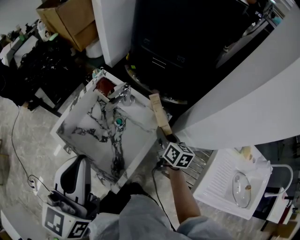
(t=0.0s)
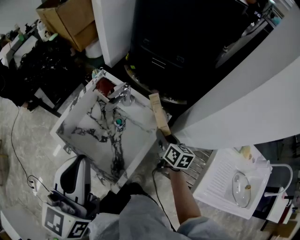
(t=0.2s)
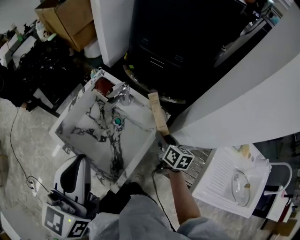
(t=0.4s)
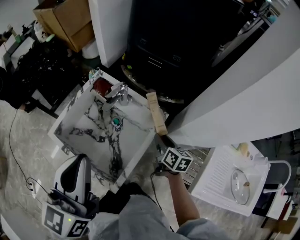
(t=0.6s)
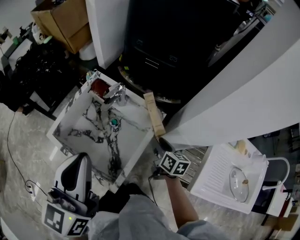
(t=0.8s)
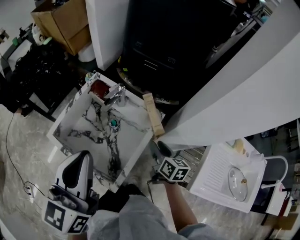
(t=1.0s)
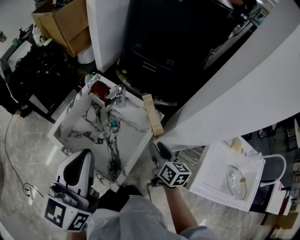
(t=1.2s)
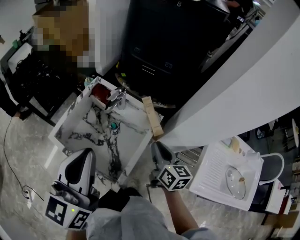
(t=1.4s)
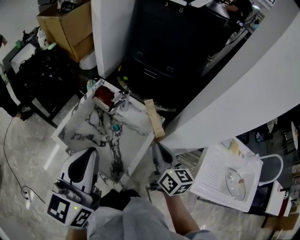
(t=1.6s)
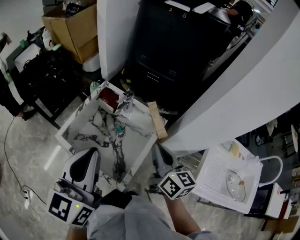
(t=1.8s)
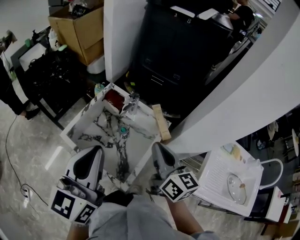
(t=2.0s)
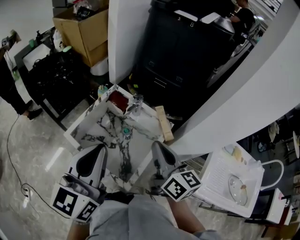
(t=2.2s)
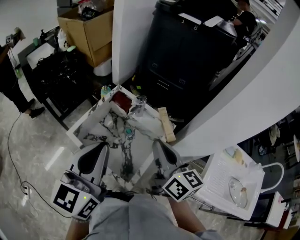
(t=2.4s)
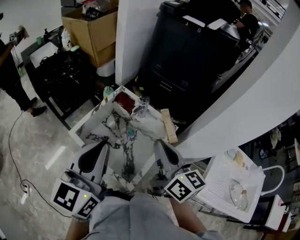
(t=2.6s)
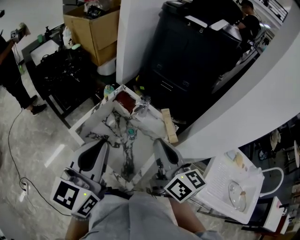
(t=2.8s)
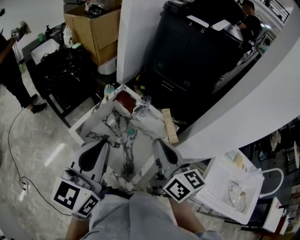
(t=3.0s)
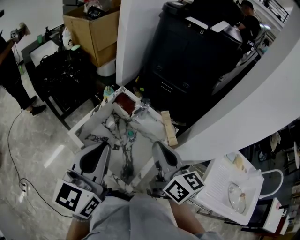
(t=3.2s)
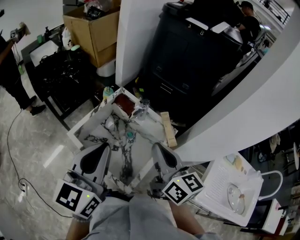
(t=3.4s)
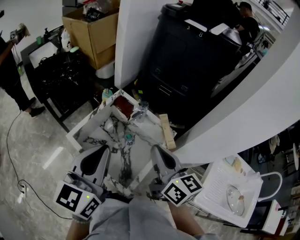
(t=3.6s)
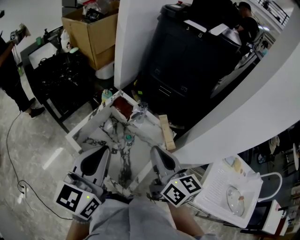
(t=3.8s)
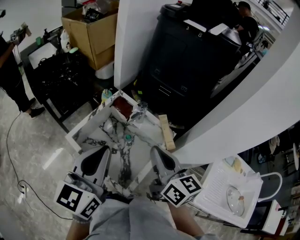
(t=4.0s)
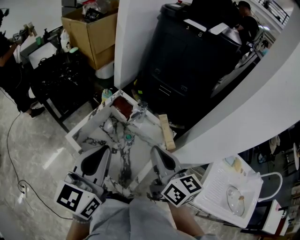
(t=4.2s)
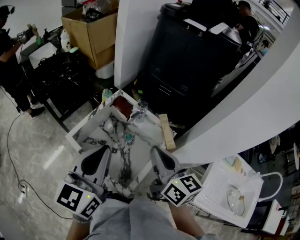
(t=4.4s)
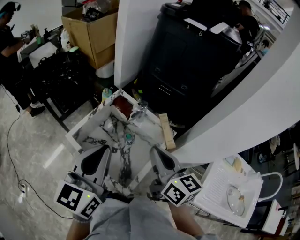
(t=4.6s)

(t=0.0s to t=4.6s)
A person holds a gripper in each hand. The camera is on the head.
t=0.0s - t=1.6s: The right gripper travels upward and backward by approximately 20 cm, and closes.
t=1.6s - t=3.0s: The right gripper travels upward and to the left by some 15 cm; the left gripper heads to the left, covering approximately 5 cm.
t=3.0s - t=4.6s: The grippers move only a little.

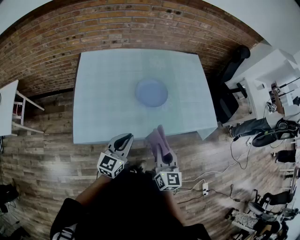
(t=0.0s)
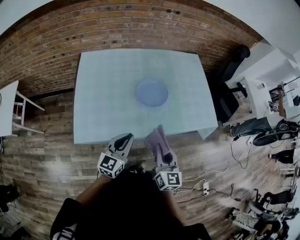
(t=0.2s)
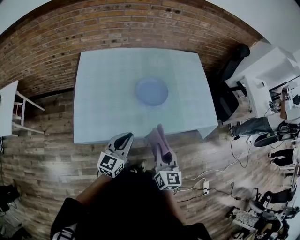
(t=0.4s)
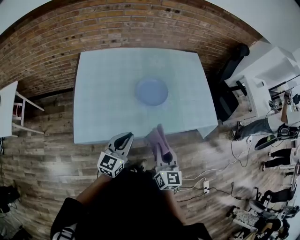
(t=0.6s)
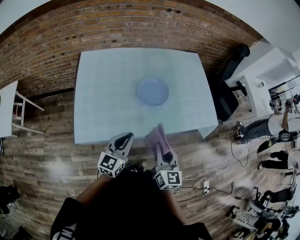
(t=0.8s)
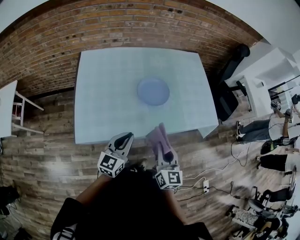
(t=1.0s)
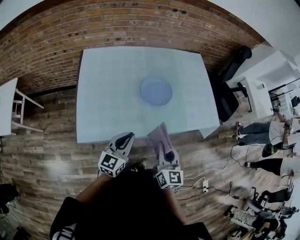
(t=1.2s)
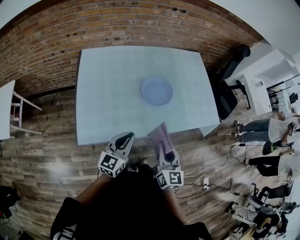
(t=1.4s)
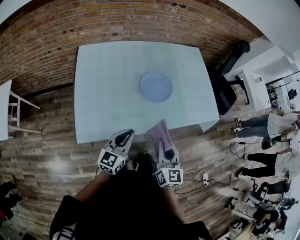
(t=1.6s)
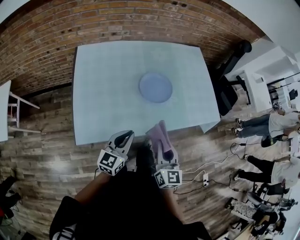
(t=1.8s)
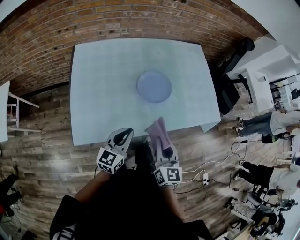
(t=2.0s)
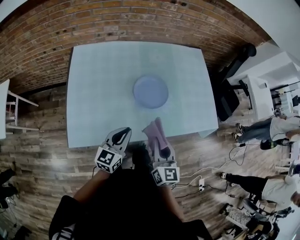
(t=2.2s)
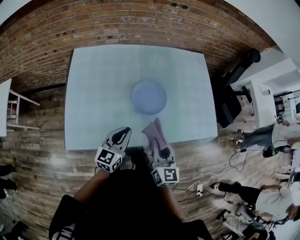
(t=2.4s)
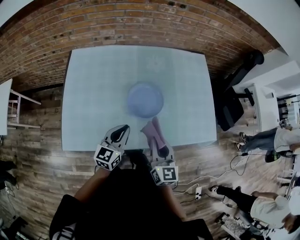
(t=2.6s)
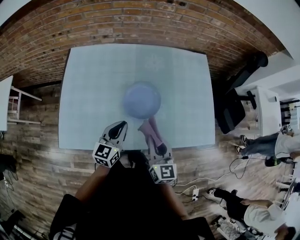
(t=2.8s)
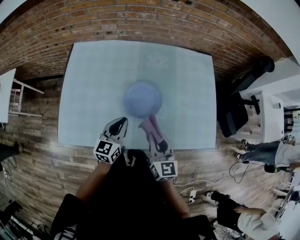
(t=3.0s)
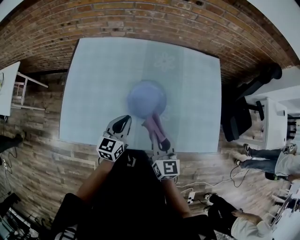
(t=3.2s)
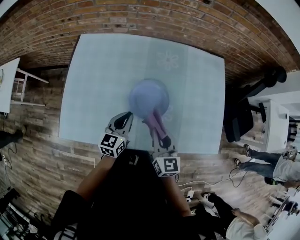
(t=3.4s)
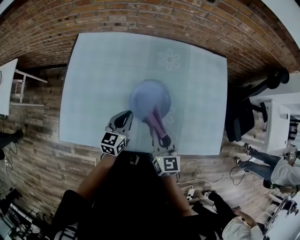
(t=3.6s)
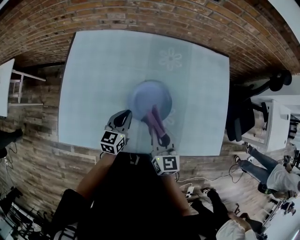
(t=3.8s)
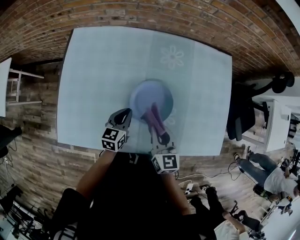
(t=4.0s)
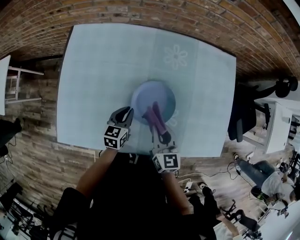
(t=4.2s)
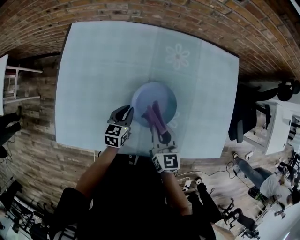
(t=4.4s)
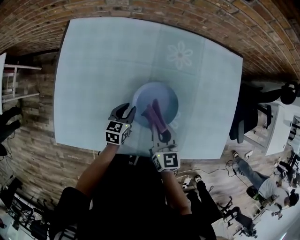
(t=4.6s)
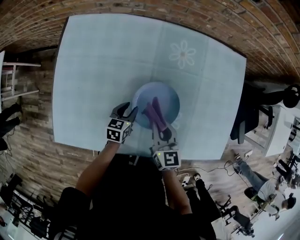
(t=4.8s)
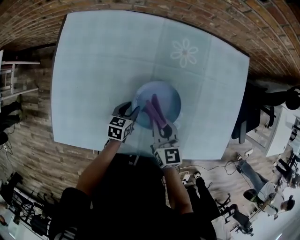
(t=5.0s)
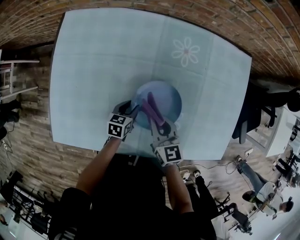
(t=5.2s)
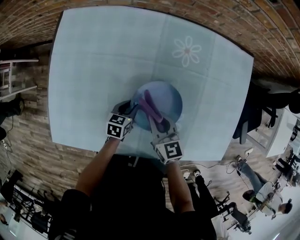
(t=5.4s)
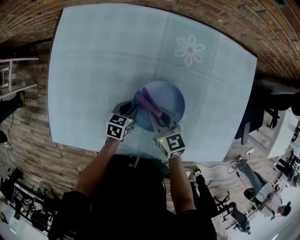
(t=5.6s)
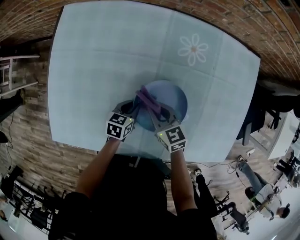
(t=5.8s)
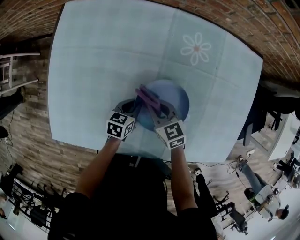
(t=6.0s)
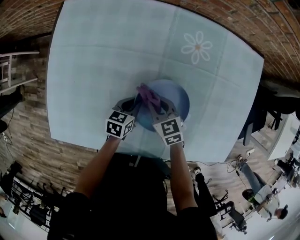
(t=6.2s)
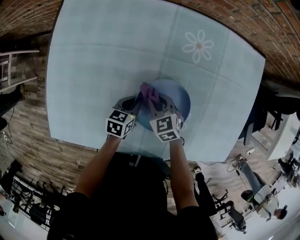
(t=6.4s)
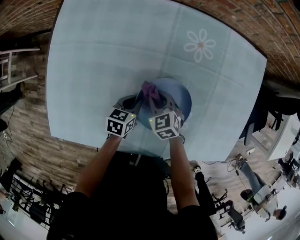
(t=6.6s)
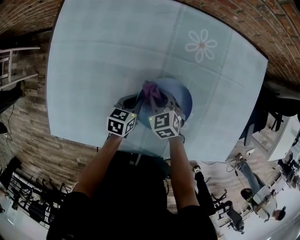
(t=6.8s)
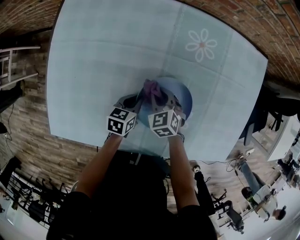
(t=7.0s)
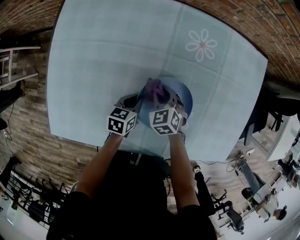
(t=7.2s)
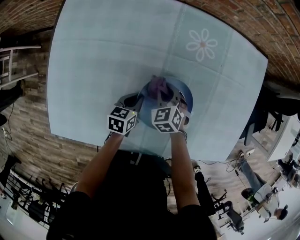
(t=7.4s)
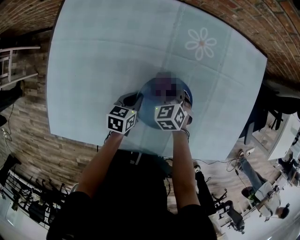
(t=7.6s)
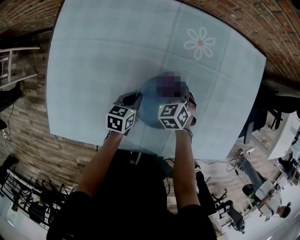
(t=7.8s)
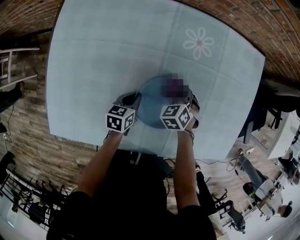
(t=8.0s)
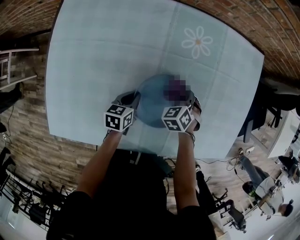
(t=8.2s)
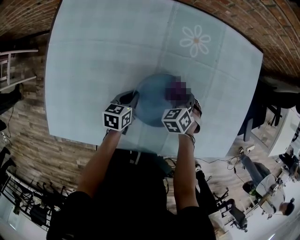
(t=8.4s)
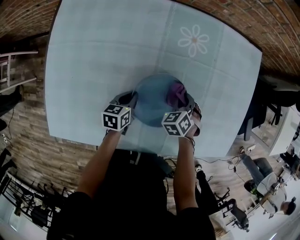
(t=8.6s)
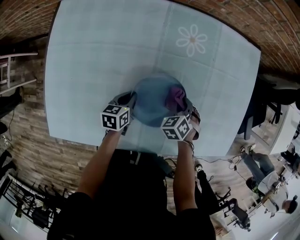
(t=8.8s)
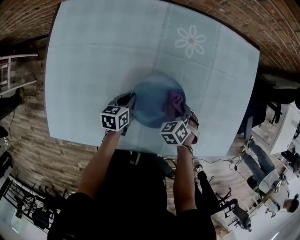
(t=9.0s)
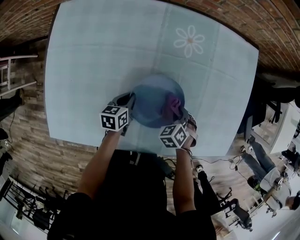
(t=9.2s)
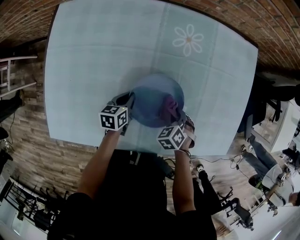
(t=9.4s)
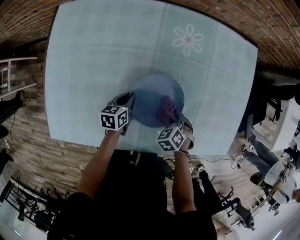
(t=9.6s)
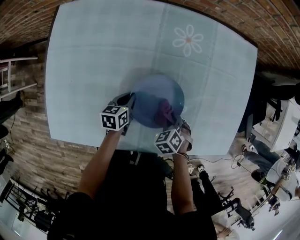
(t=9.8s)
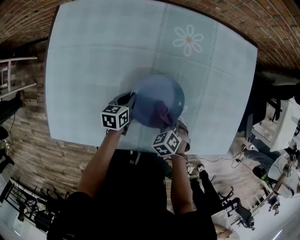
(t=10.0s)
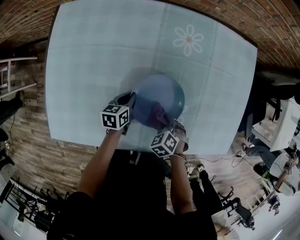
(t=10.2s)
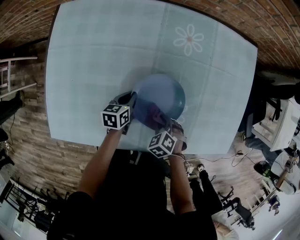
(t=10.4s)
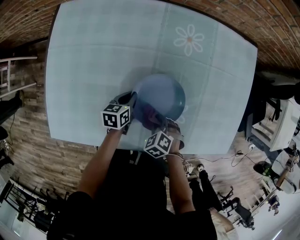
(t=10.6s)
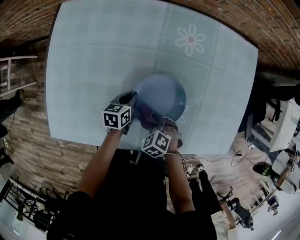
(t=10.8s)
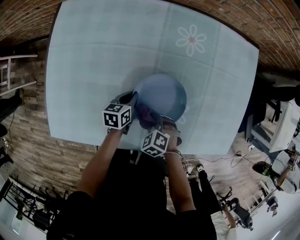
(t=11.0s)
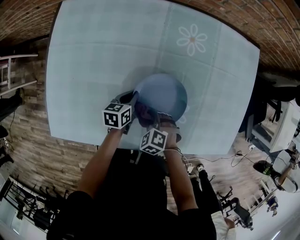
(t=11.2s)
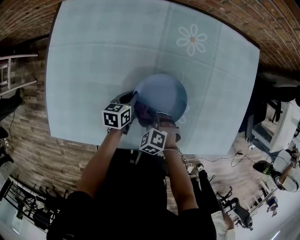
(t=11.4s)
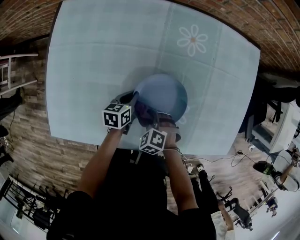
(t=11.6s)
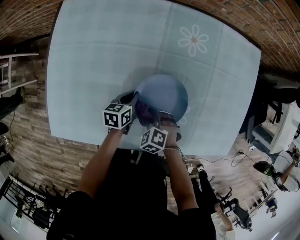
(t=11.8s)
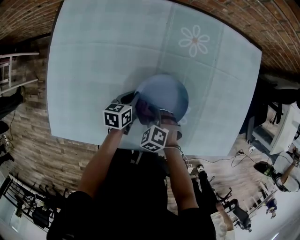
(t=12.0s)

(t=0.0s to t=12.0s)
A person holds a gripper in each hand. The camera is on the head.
t=0.0s - t=1.6s: Both grippers travel together to the left, about 5 cm.
t=1.6s - t=3.0s: The grippers both shift forward and to the right by some 25 cm. The right gripper turns by some 20 degrees; the left gripper changes its angle by about 20 degrees.
t=3.0s - t=4.4s: The left gripper goes approximately 20 cm downward and forward, and turns by about 20 degrees; the right gripper shifts about 20 cm forward and downward.
t=4.4s - t=6.0s: The left gripper heads downward, covering some 10 cm, while the right gripper goes about 15 cm downward, forward and to the left, and rotates approximately 30 degrees.
t=6.0s - t=7.6s: The right gripper heads forward, covering approximately 5 cm, and rotates roughly 40 degrees.
t=7.6s - t=9.0s: The right gripper goes roughly 15 cm to the right.
t=9.0s - t=10.4s: The right gripper travels backward by approximately 10 cm.
t=10.4s - t=12.0s: The right gripper goes some 5 cm to the left.

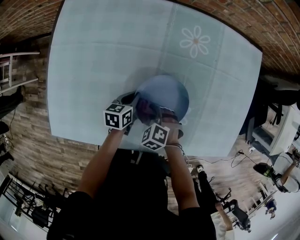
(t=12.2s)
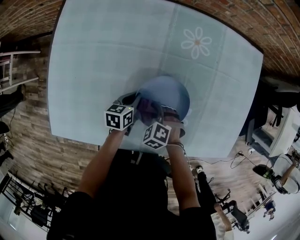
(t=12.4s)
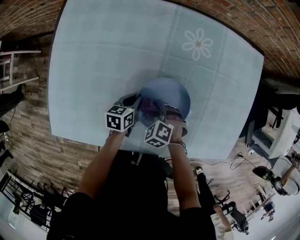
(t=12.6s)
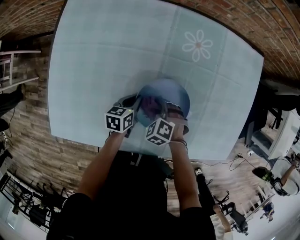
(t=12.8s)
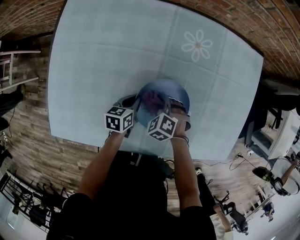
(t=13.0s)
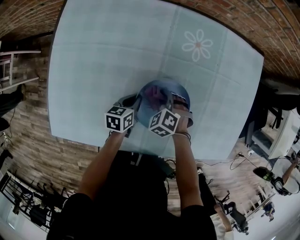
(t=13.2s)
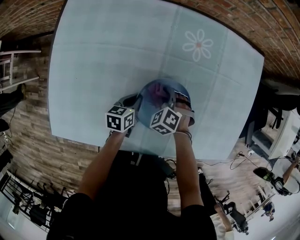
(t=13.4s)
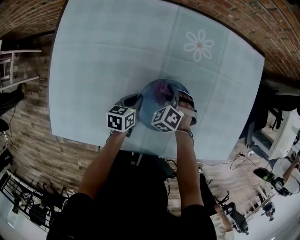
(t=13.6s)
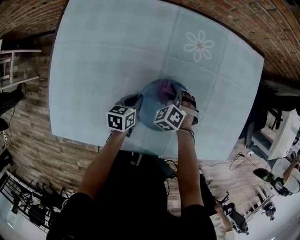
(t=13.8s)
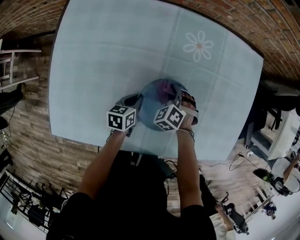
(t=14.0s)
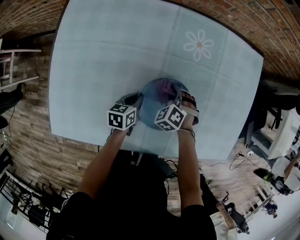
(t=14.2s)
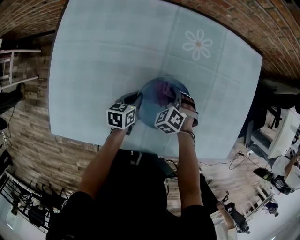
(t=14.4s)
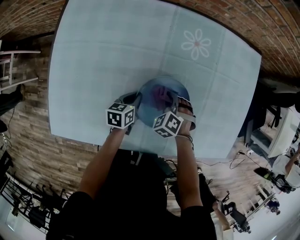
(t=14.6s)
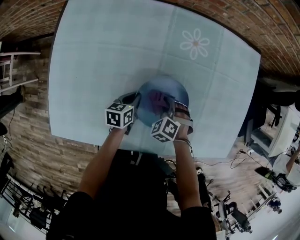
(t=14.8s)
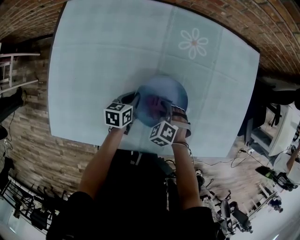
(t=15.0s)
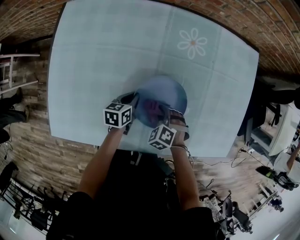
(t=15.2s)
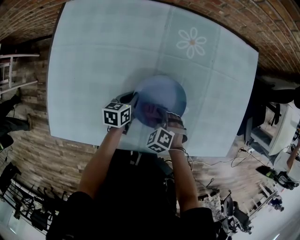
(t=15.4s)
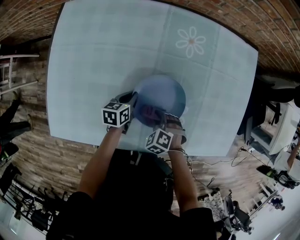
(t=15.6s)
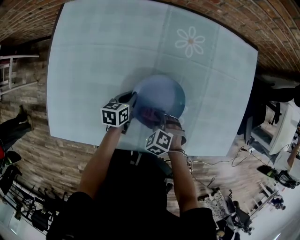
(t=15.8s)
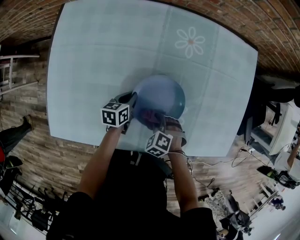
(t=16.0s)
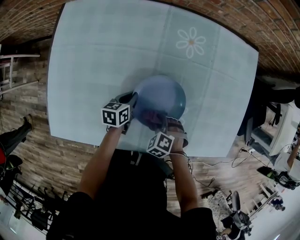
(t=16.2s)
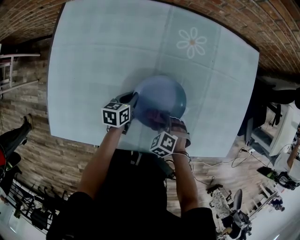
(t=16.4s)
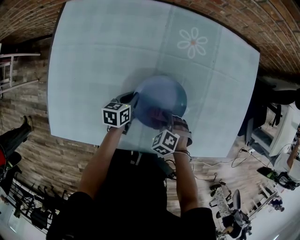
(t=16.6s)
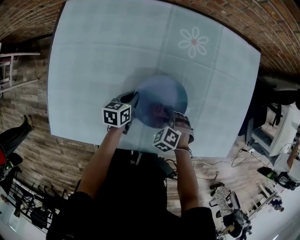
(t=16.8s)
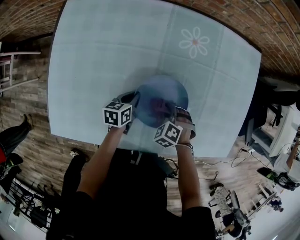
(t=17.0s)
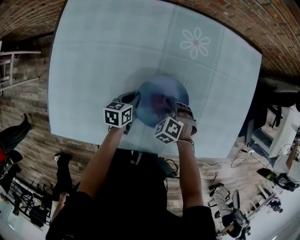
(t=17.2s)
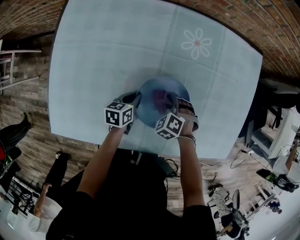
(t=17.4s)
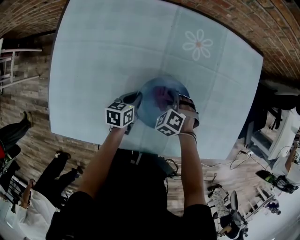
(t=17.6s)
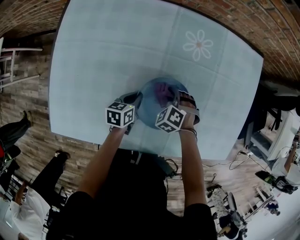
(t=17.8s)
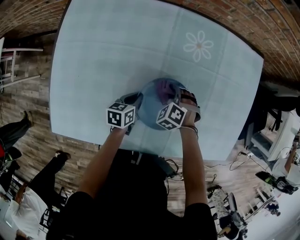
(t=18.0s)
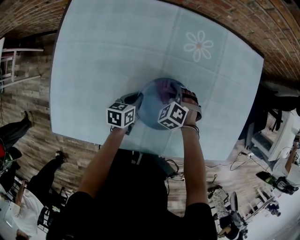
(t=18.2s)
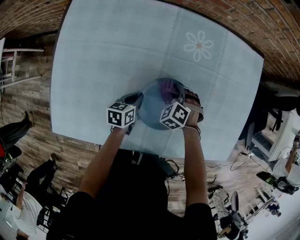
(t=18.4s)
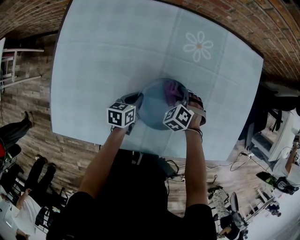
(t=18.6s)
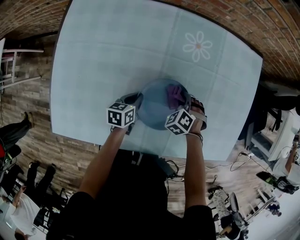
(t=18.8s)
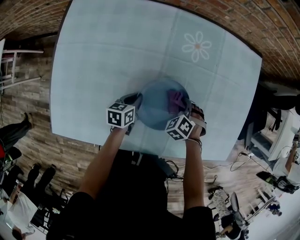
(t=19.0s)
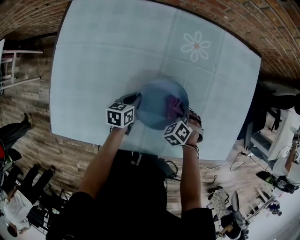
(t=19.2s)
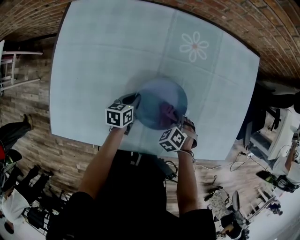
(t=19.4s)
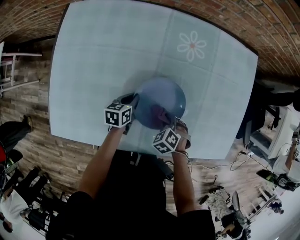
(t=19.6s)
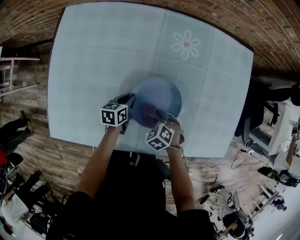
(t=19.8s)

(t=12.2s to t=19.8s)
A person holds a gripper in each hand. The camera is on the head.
t=12.2s - t=13.8s: The right gripper travels forward by roughly 15 cm.
t=13.8s - t=15.2s: The right gripper heads backward, covering approximately 10 cm.
t=15.2s - t=16.8s: The grippers stay close to where they were, moving slightly.
t=16.8s - t=18.2s: The right gripper shifts about 10 cm forward.
t=18.2s - t=19.8s: The right gripper ends up about 15 cm from where it was, and swivels approximately 20 degrees.
